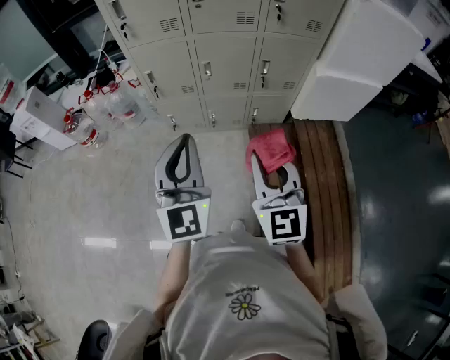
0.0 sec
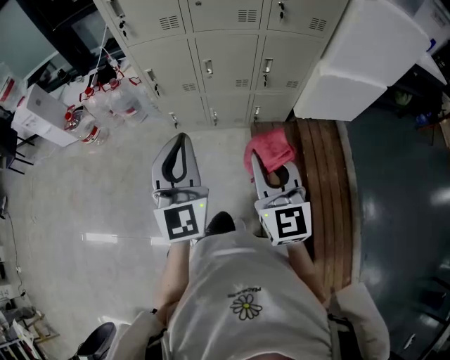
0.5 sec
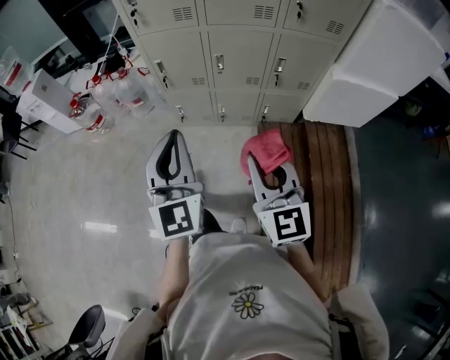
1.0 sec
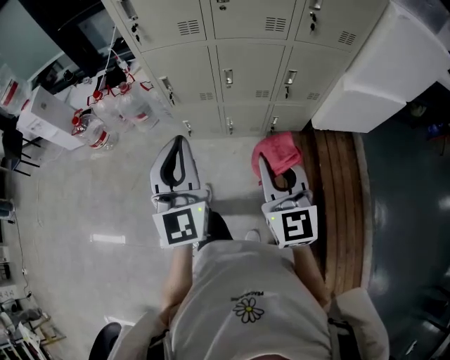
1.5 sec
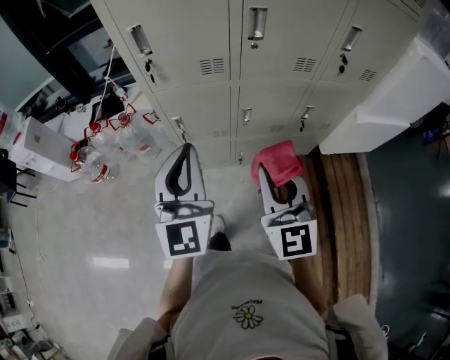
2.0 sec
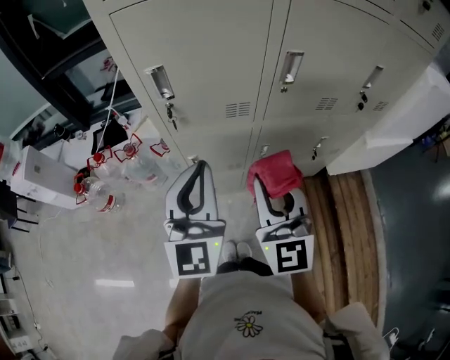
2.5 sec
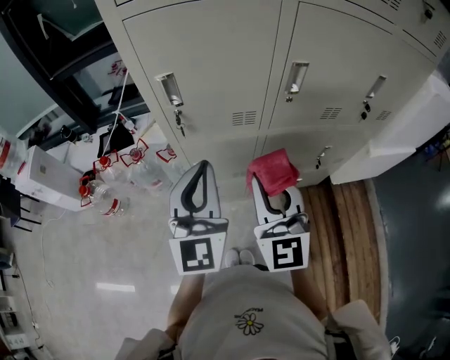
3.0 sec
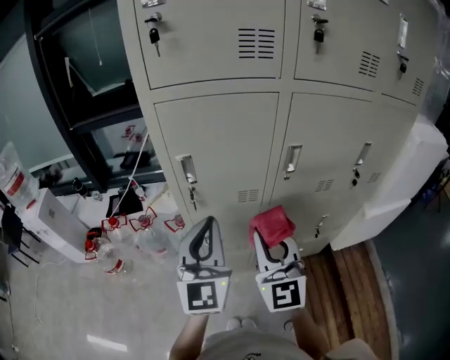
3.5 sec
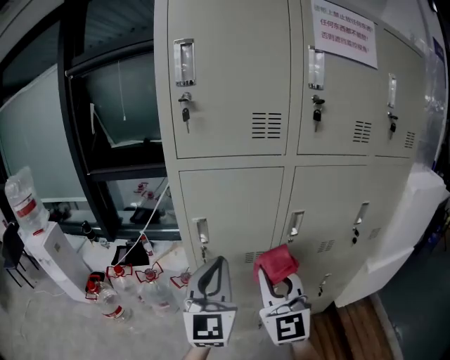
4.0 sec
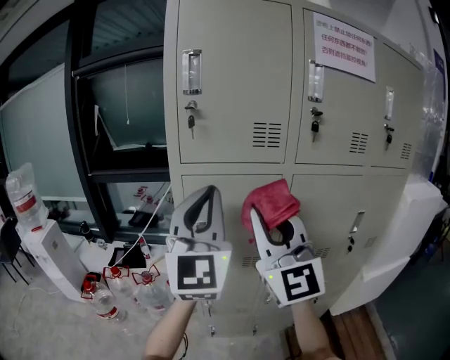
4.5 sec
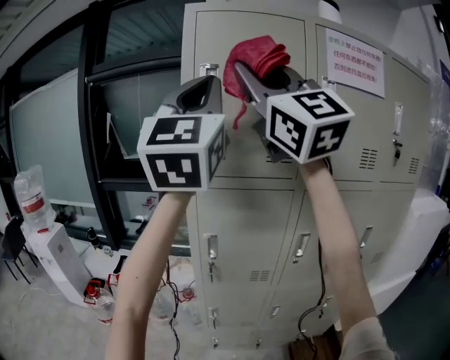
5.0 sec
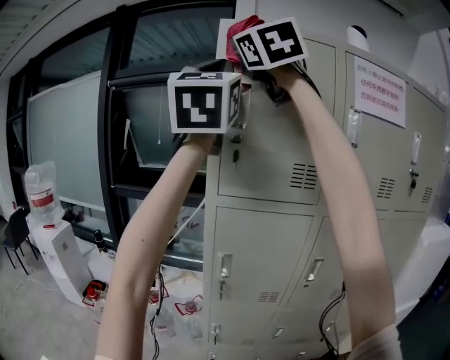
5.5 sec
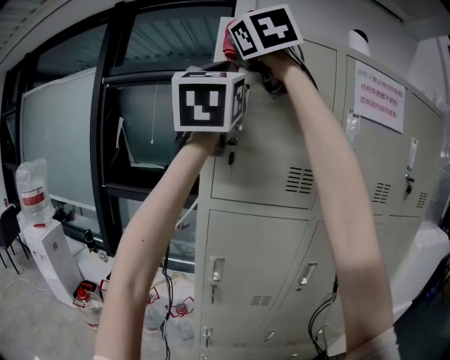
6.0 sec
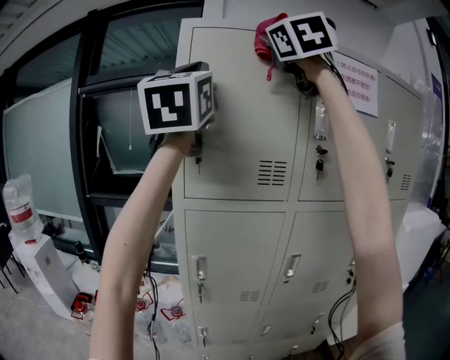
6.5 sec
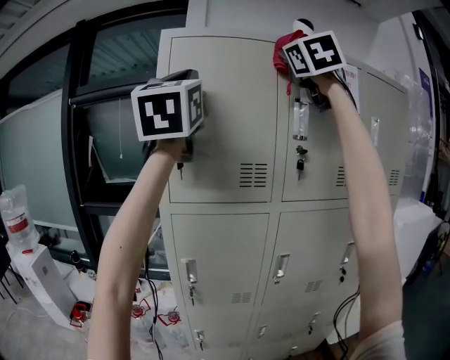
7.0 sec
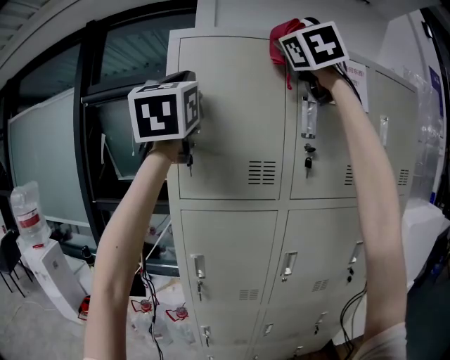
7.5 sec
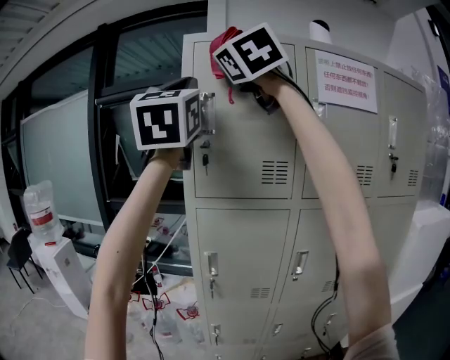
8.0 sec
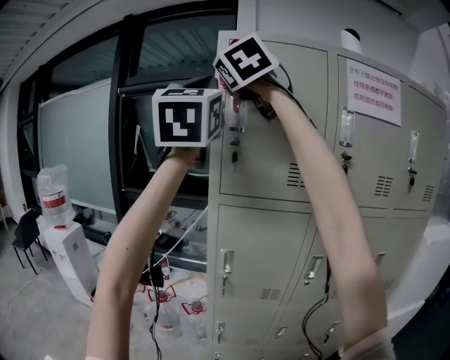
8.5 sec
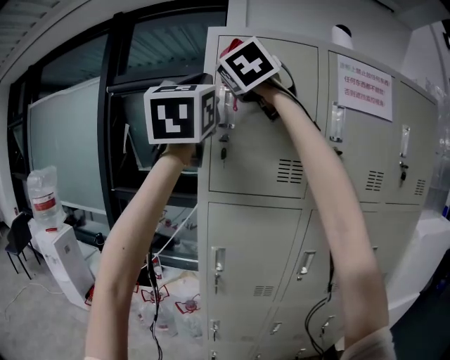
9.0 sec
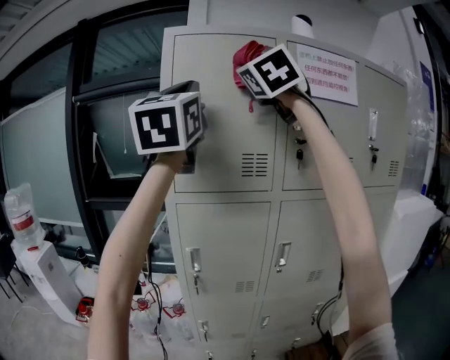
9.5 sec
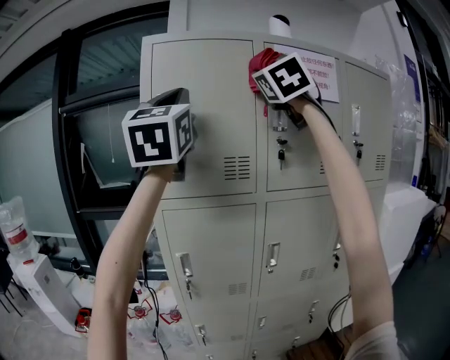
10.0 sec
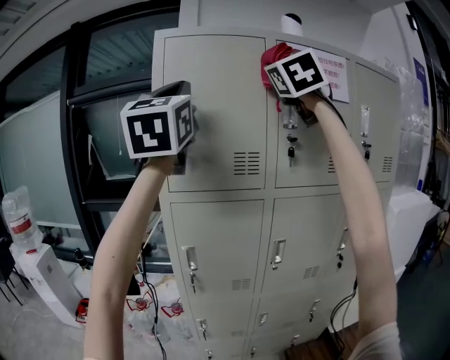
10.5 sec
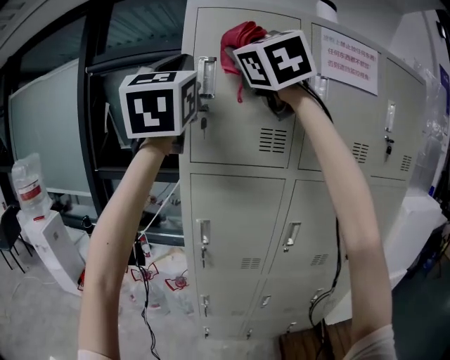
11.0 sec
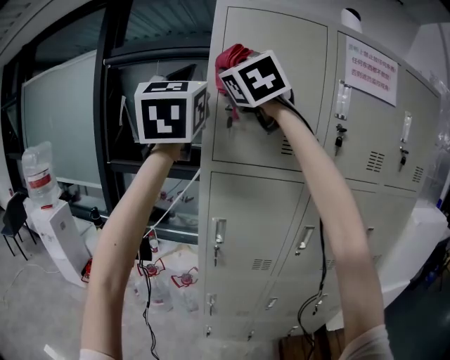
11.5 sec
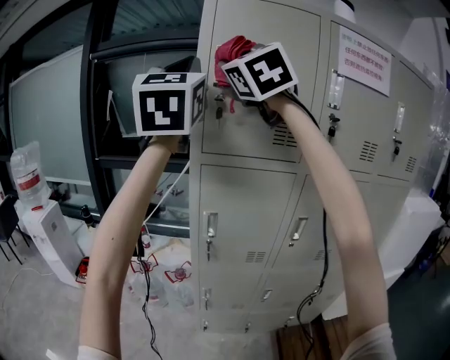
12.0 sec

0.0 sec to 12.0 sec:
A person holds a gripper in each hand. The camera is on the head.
0.0 sec to 2.0 sec: Both grippers travel together forward and to the left, some 30 cm.
2.0 sec to 4.0 sec: The right gripper shifts some 25 cm forward, upward and to the left, while the left gripper heads forward and upward, covering some 20 cm.
4.0 sec to 6.0 sec: Both grippers move upward, approximately 50 cm. The left gripper turns by about 20 degrees.
6.0 sec to 8.0 sec: The right gripper travels to the right and back again, about 25 cm each way.
8.0 sec to 10.0 sec: The left gripper goes some 5 cm to the right, while the right gripper heads to the right, covering approximately 20 cm, and changes its angle by about 20 degrees.
10.0 sec to 12.0 sec: The right gripper travels to the left and downward by some 25 cm, and turns by about 20 degrees. The left gripper shifts roughly 10 cm to the left.

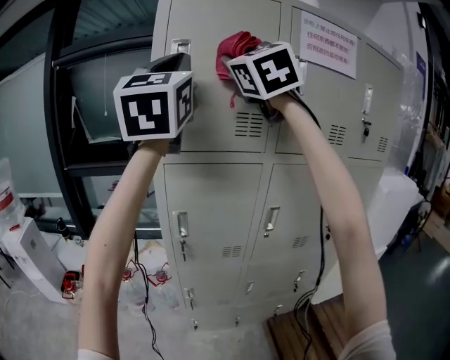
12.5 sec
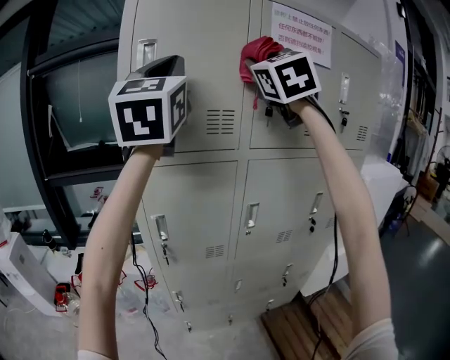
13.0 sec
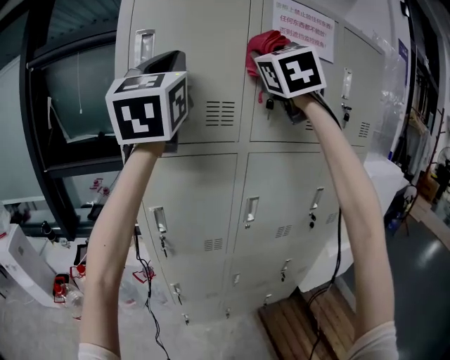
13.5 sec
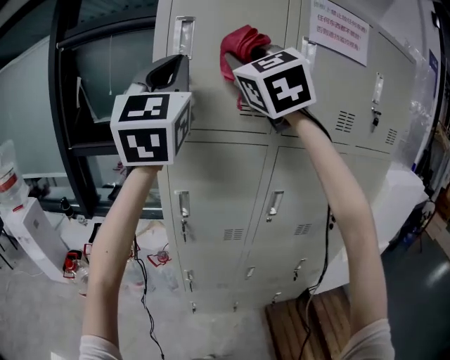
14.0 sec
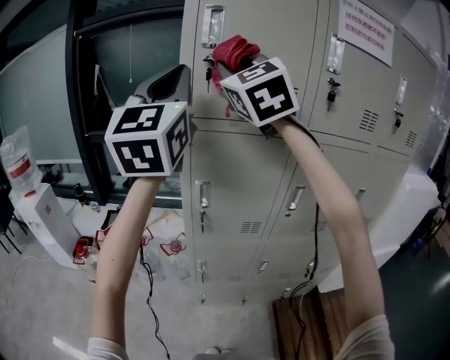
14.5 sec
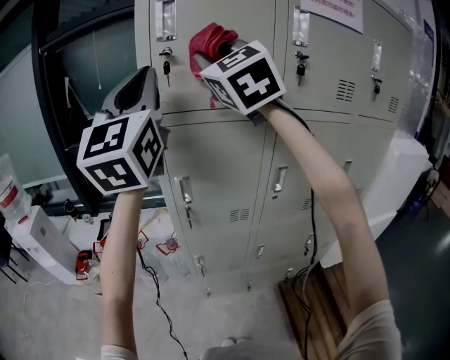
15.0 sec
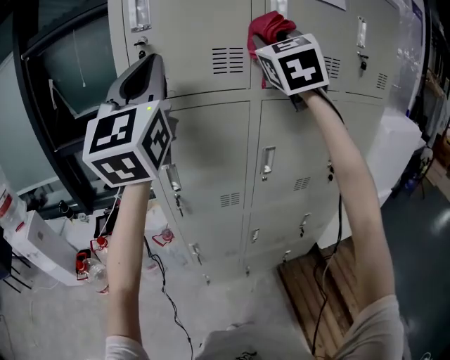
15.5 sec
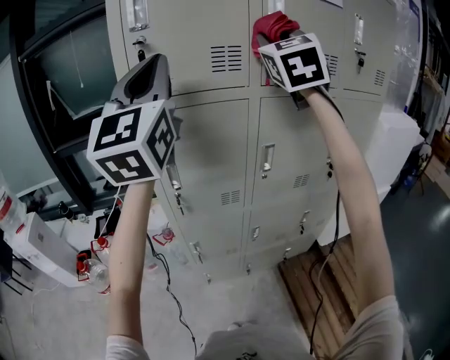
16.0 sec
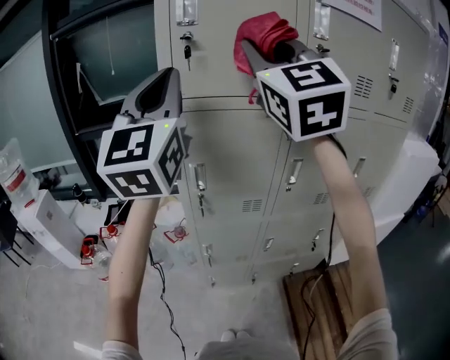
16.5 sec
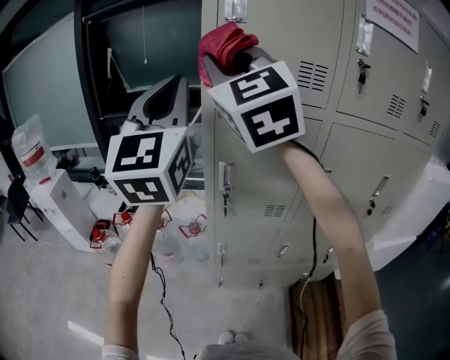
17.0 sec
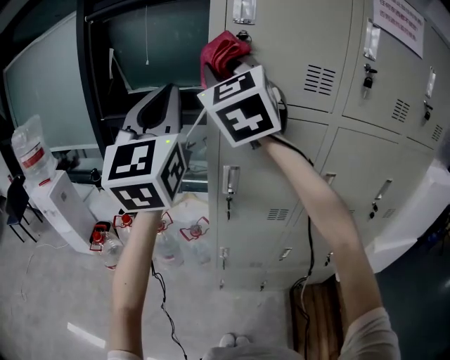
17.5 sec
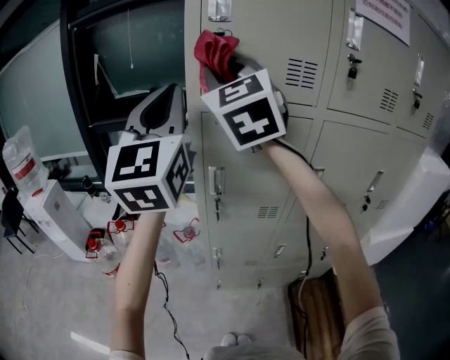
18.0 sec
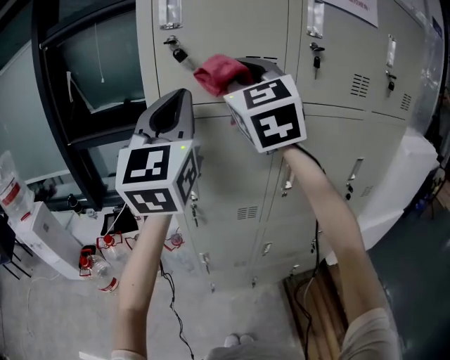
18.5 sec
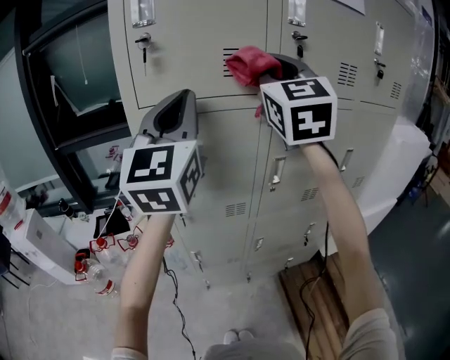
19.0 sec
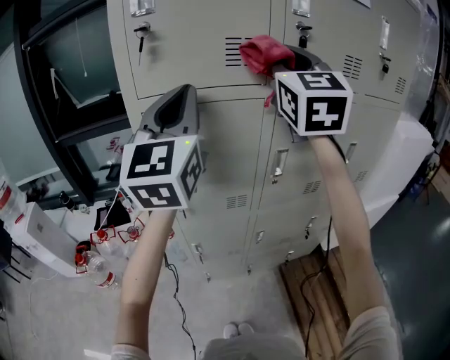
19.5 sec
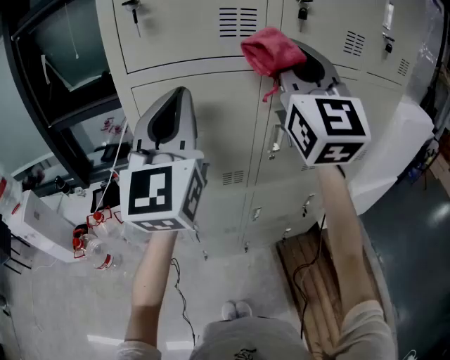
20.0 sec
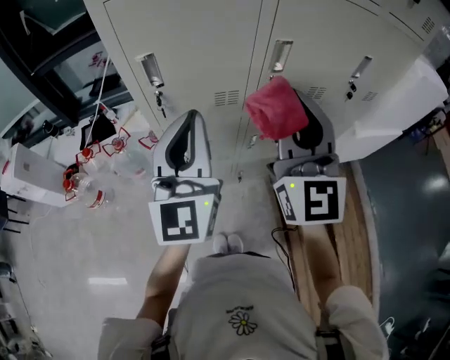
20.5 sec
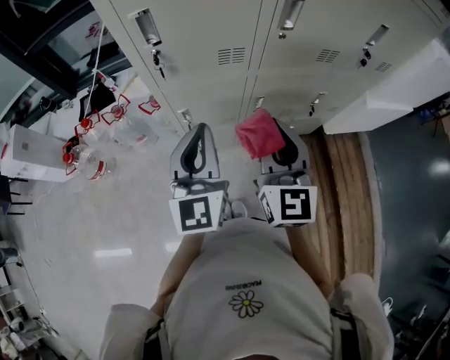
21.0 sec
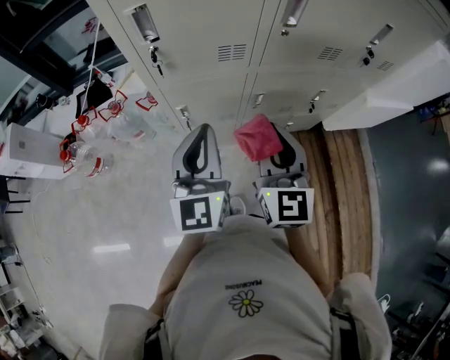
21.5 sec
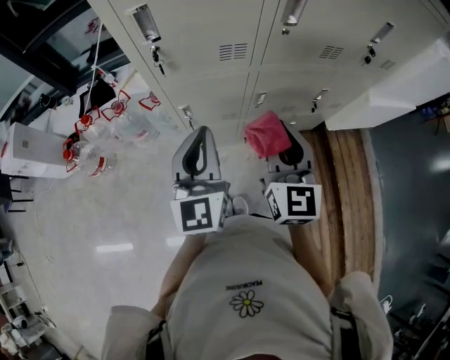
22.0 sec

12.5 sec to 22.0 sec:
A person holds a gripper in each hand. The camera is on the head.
12.5 sec to 14.5 sec: The right gripper moves downward and to the left, roughly 10 cm. Meanwhile the left gripper shifts some 10 cm downward.
14.5 sec to 16.5 sec: The left gripper reaches approximately 10 cm to the right, then returns; the right gripper goes some 10 cm to the right and backward.
16.5 sec to 18.0 sec: The right gripper heads to the left, forward and downward, covering about 15 cm.
18.0 sec to 20.0 sec: The left gripper shifts some 15 cm to the right and downward, while the right gripper heads to the right, covering some 25 cm, and swivels approximately 20 degrees.
20.0 sec to 22.0 sec: Both grippers travel together downward, about 35 cm. The right gripper tips its fingers downward by about 30 degrees; the left gripper changes its angle by roughly 30 degrees.

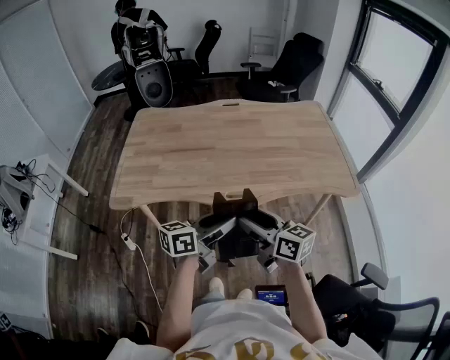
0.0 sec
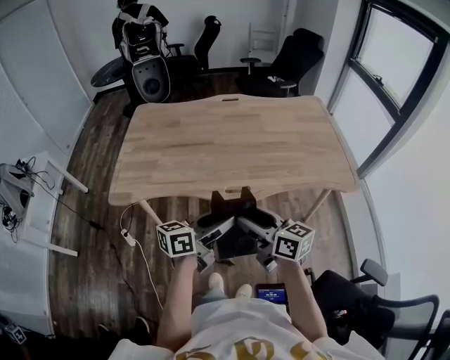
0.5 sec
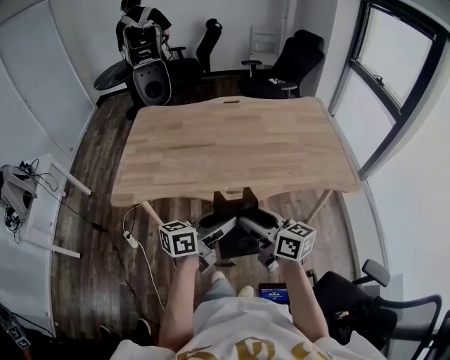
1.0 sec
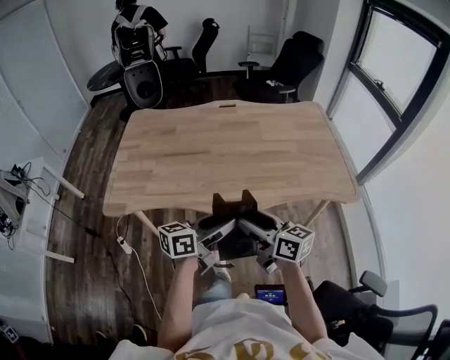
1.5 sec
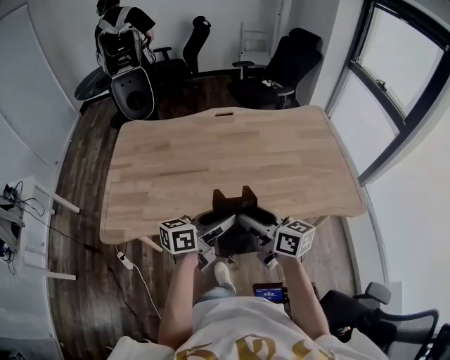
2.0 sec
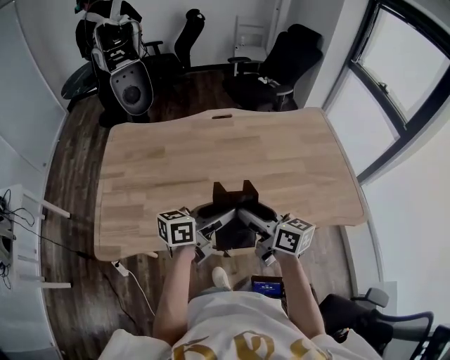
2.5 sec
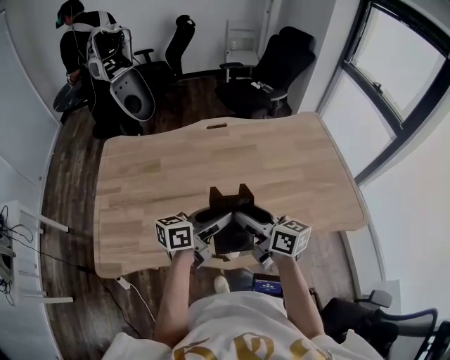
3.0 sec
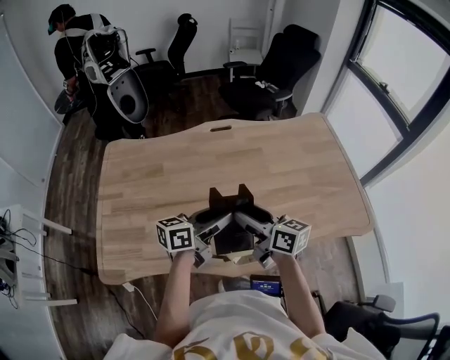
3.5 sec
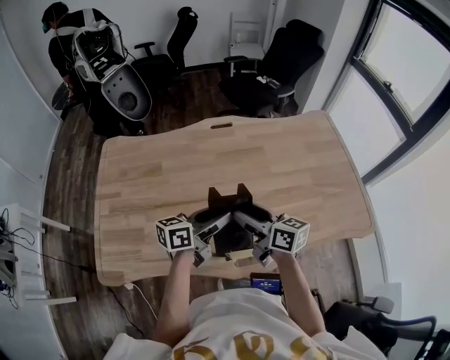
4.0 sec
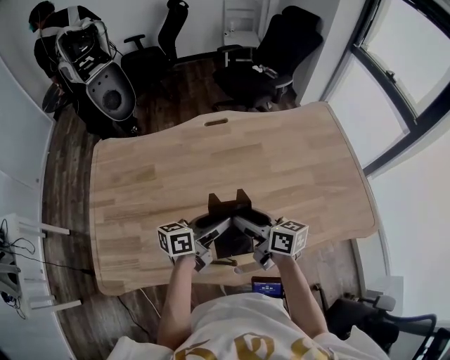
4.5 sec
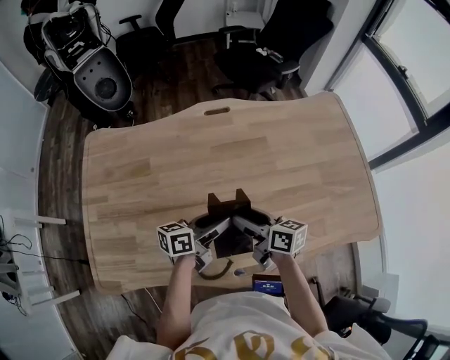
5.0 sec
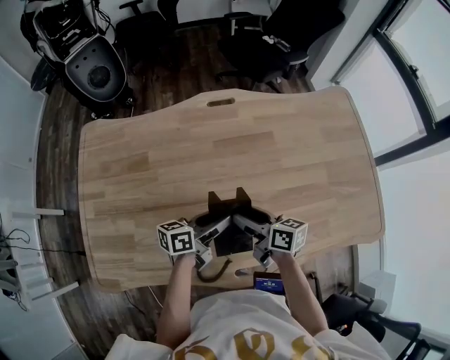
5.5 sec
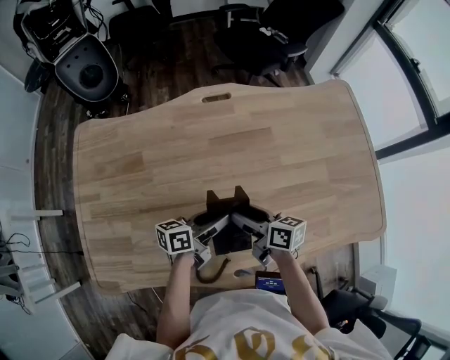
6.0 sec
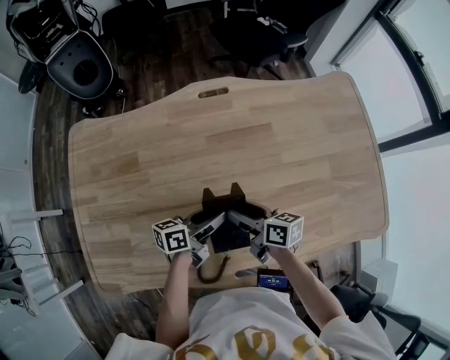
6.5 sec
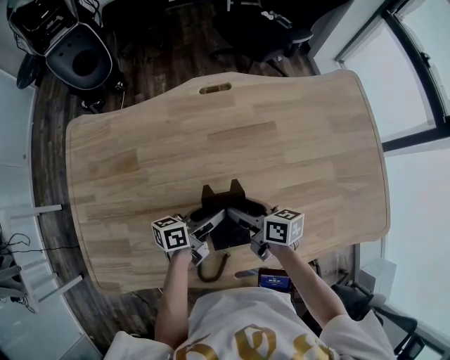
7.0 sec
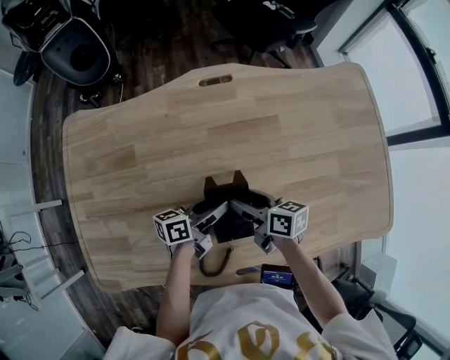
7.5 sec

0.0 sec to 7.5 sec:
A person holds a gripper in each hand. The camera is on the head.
0.0 sec to 2.0 sec: Both grippers travel together forward, roughly 20 cm.
2.0 sec to 4.0 sec: The grippers both shift forward by approximately 20 cm.
4.0 sec to 5.5 sec: The two grippers go some 15 cm downward and forward.
5.5 sec to 7.5 sec: Both grippers move downward and forward, some 10 cm.
